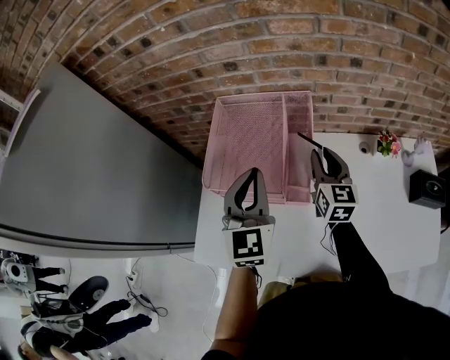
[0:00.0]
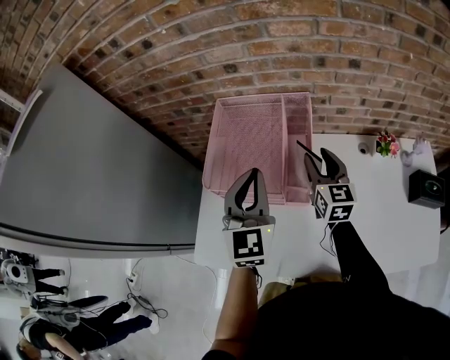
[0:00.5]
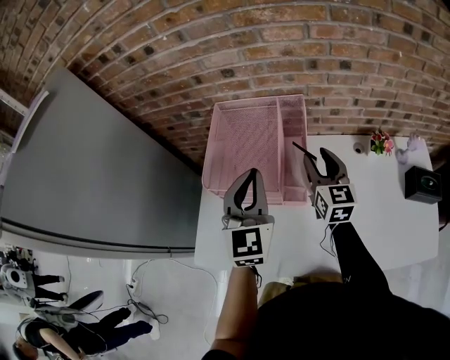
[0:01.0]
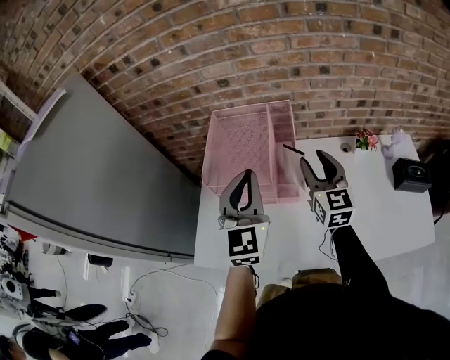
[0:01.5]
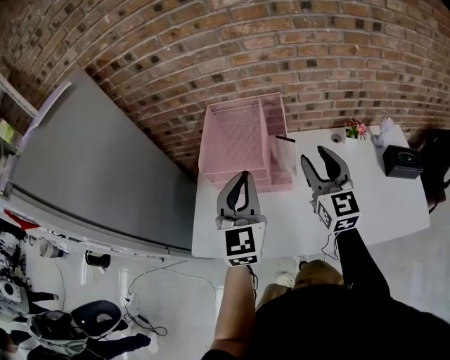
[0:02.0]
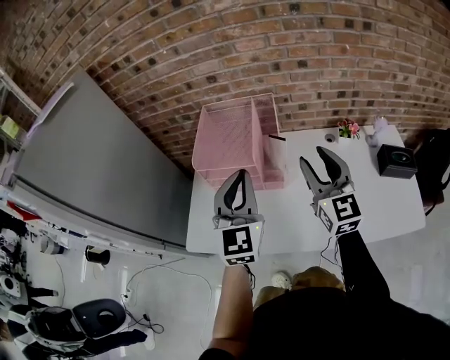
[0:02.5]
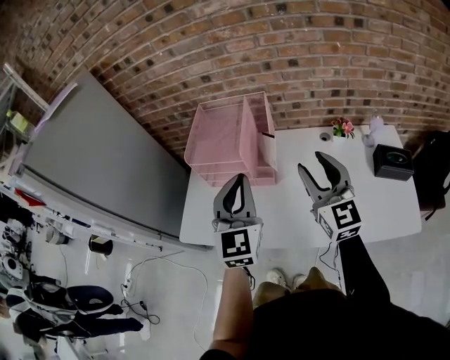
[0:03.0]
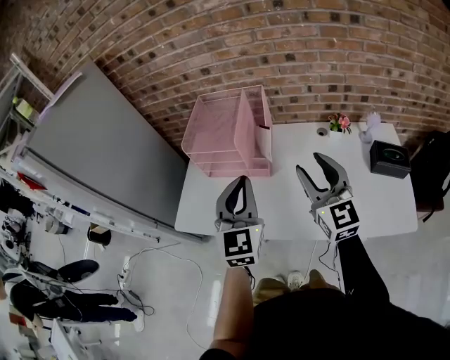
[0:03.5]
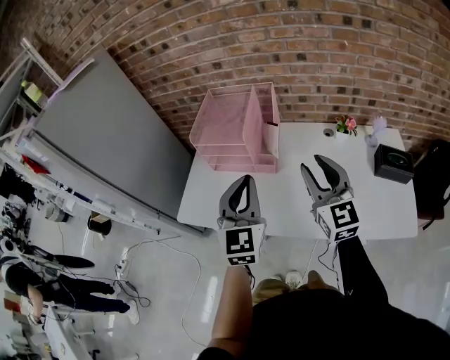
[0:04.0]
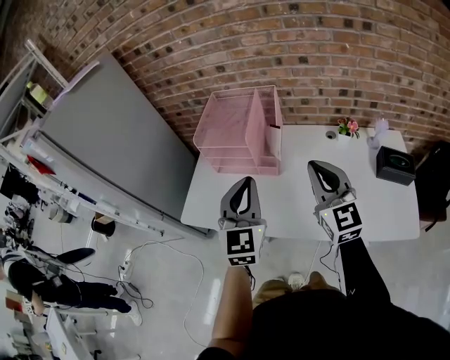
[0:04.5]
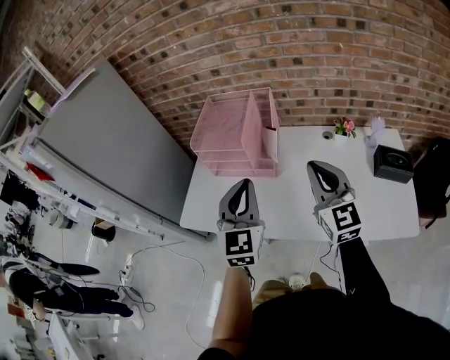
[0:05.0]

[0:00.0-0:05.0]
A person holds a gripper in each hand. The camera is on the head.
0:00.0 to 0:02.5: The right gripper is displaced backward and upward by approximately 25 cm, changes its angle by roughly 20 degrees, and opens up; the left gripper travels backward by roughly 15 cm.
0:02.5 to 0:05.0: The right gripper is displaced backward by approximately 10 cm, and closes. Meanwhile the left gripper moves backward and to the right, some 10 cm.

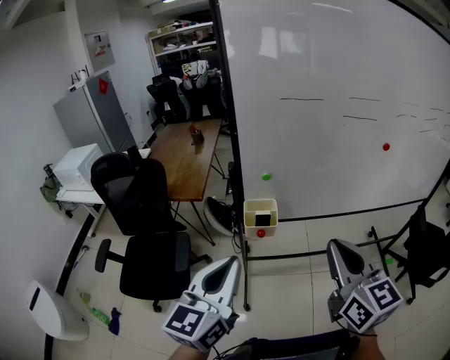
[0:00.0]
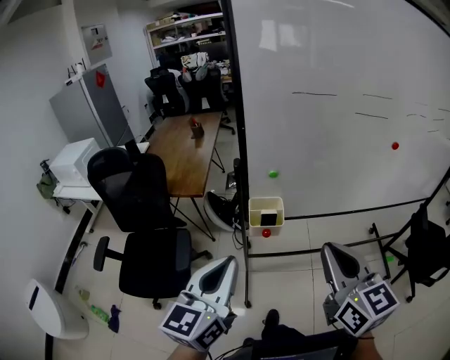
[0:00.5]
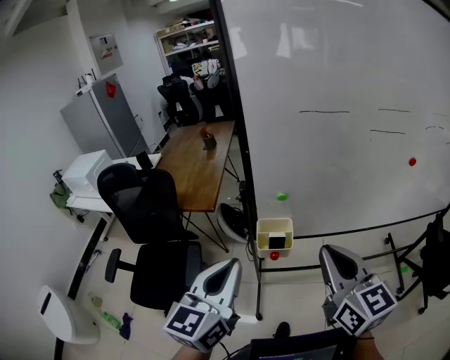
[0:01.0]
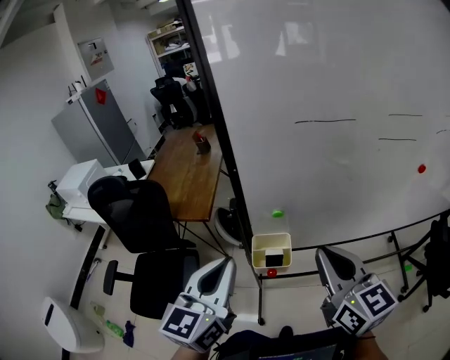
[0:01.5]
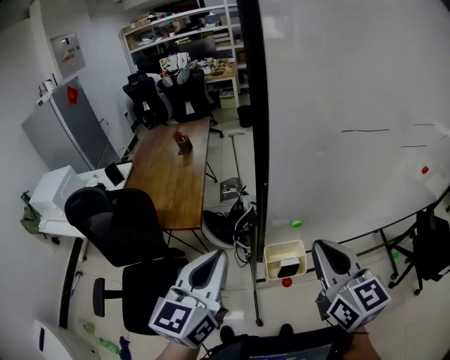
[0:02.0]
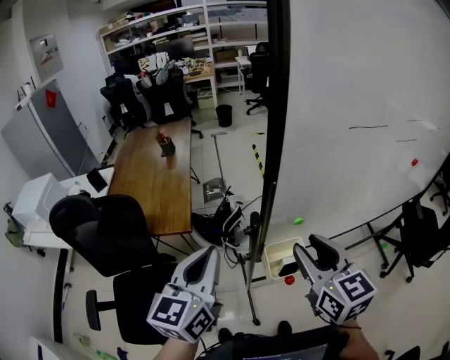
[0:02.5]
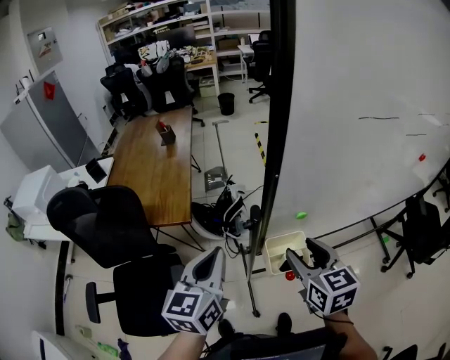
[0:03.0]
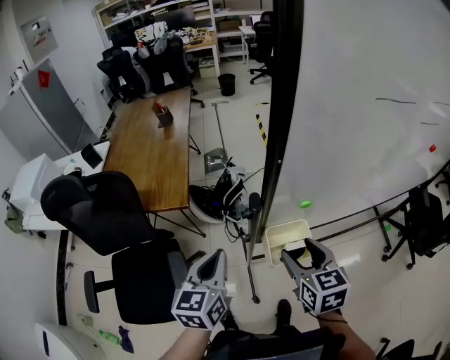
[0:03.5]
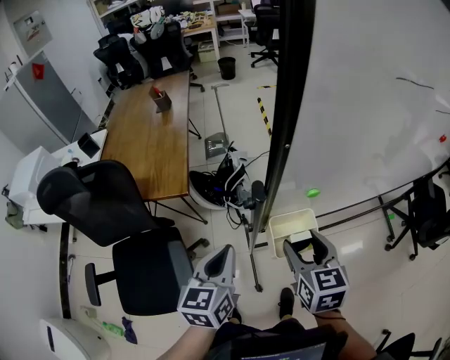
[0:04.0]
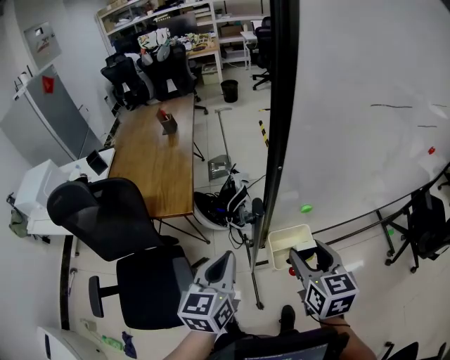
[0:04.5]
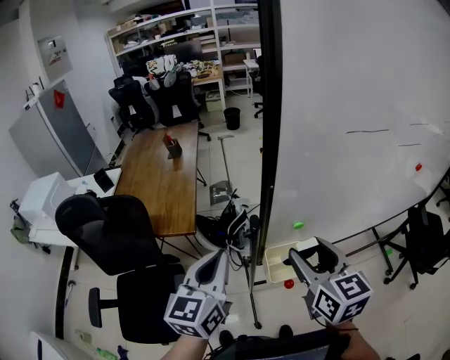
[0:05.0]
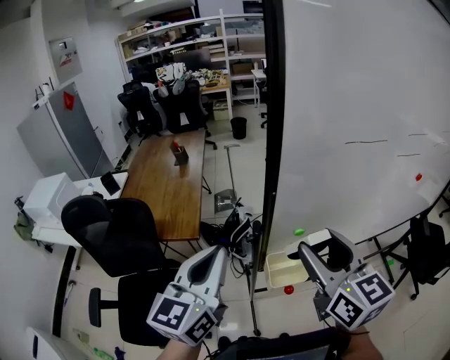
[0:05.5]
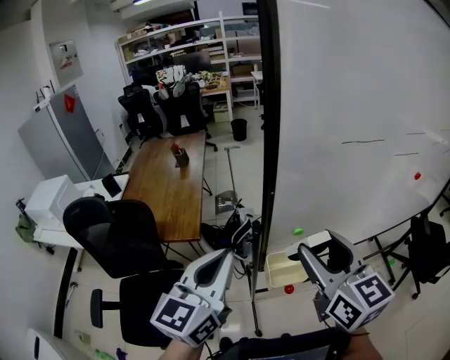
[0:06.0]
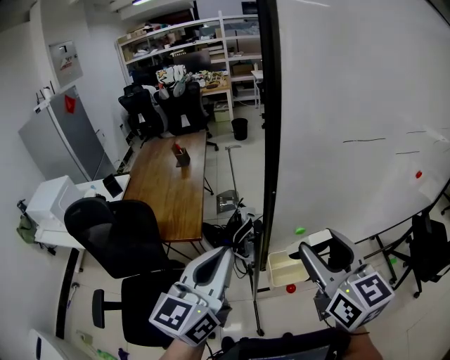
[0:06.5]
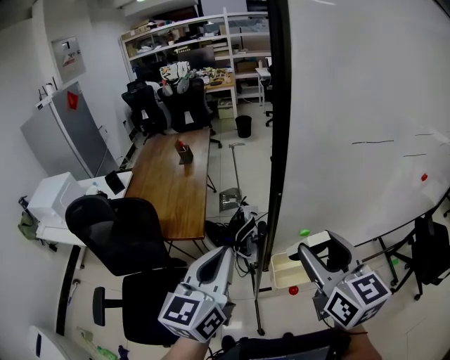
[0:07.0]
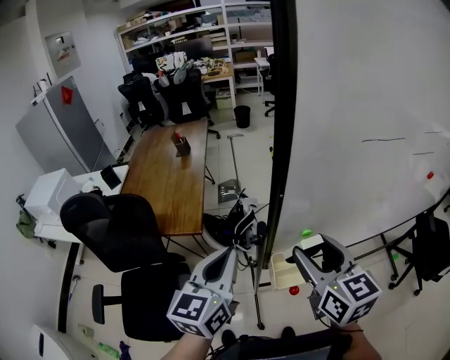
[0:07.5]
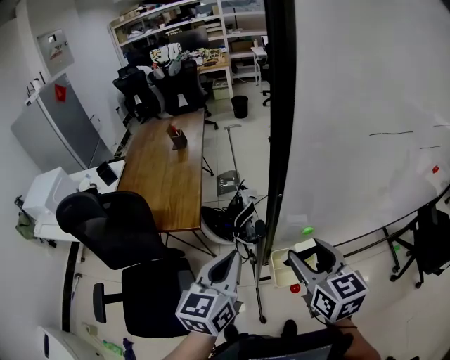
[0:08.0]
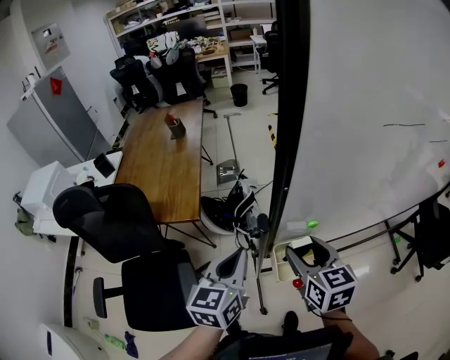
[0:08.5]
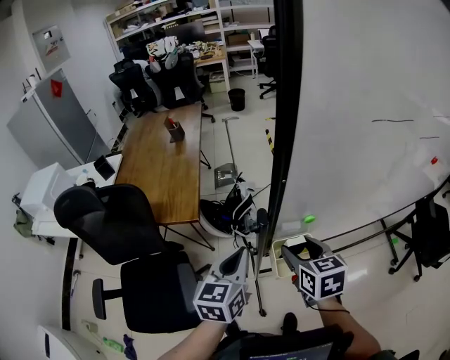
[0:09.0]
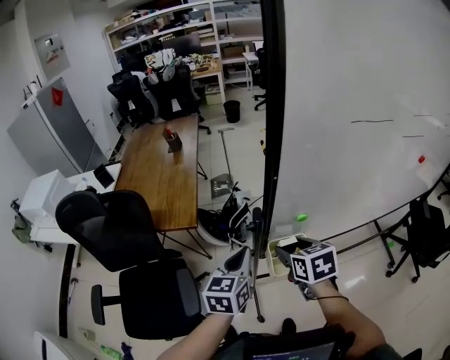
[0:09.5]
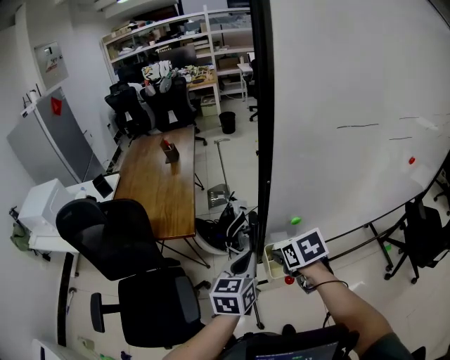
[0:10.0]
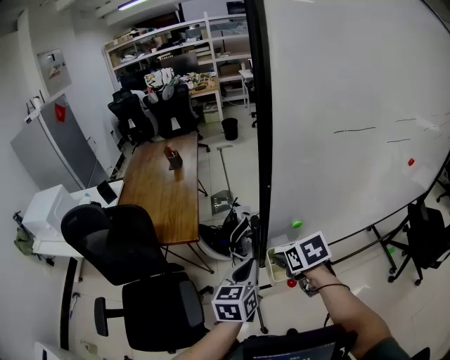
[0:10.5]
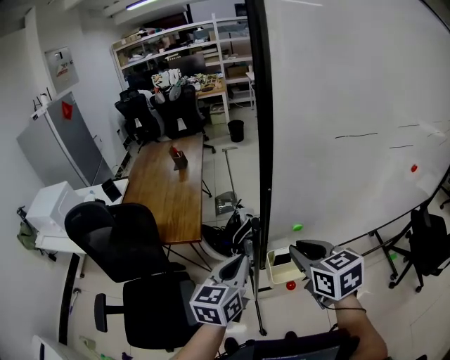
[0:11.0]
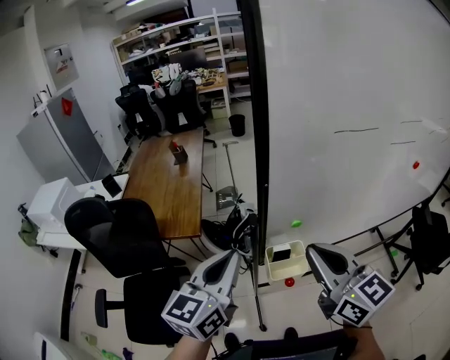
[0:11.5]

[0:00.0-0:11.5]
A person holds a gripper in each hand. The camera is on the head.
0:00.0 to 0:02.0: The two grippers go roughly 35 cm forward and to the left.
0:02.0 to 0:04.0: The grippers both shift downward by some 25 cm. The right gripper changes its angle by about 30 degrees, and opens, while the left gripper turns by roughly 20 degrees.
0:04.0 to 0:06.0: The two grippers go approximately 25 cm upward. The left gripper swivels roughly 30 degrees, while the right gripper swivels approximately 30 degrees.
0:06.0 to 0:07.5: The two grippers go some 10 cm downward and forward.
0:07.5 to 0:09.5: Both grippers move downward, about 15 cm. The right gripper points its fingers approximately 30 degrees further downward.
0:09.5 to 0:11.5: Both grippers move upward and backward, roughly 20 cm. The right gripper points its fingers some 40 degrees further upward, and closes up.

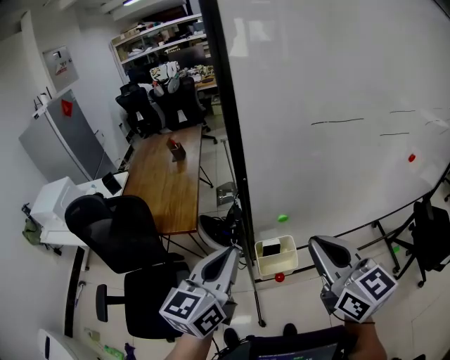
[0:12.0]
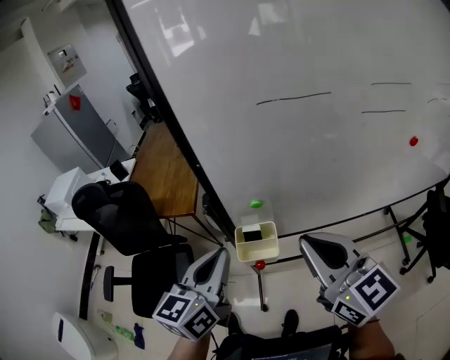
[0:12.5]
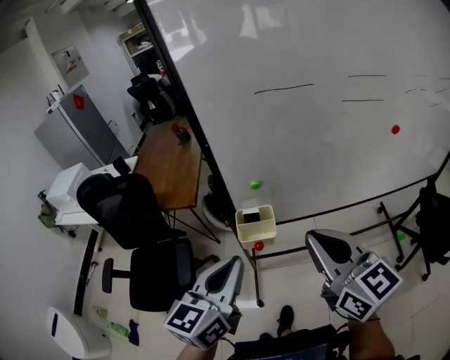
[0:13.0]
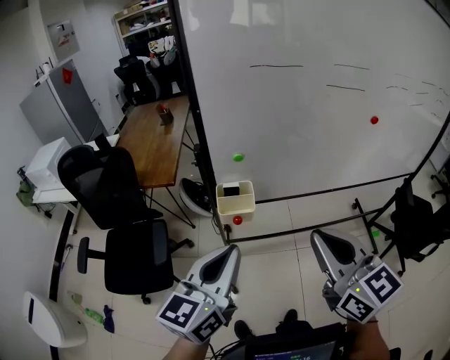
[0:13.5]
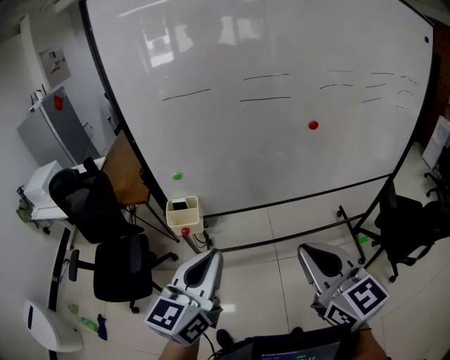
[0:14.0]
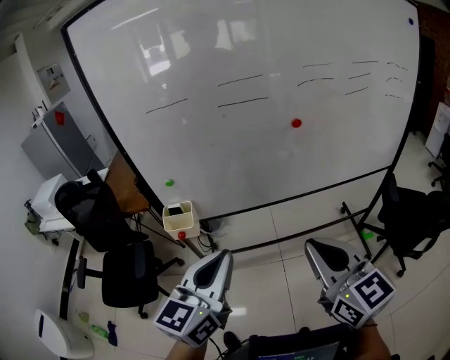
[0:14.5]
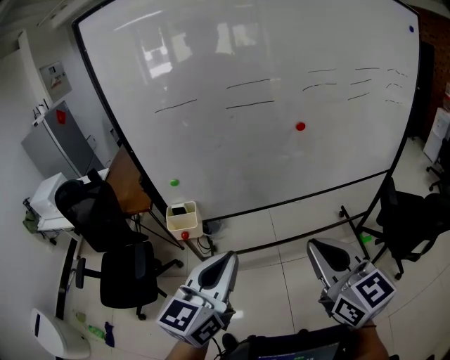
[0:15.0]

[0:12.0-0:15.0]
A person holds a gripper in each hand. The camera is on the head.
0:12.0 to 0:13.5: Both grippers travel together backward and to the right, about 30 cm.
0:13.5 to 0:15.0: Both grippers move to the right, some 25 cm.

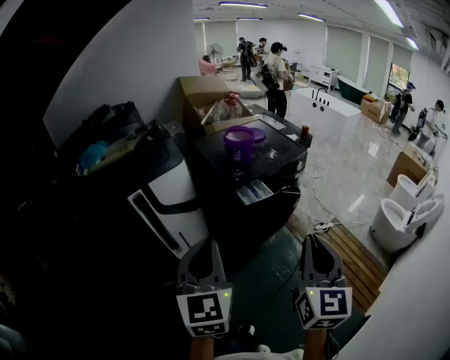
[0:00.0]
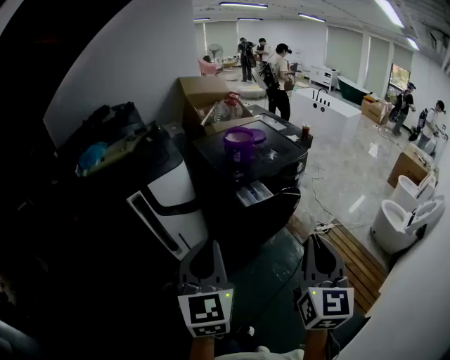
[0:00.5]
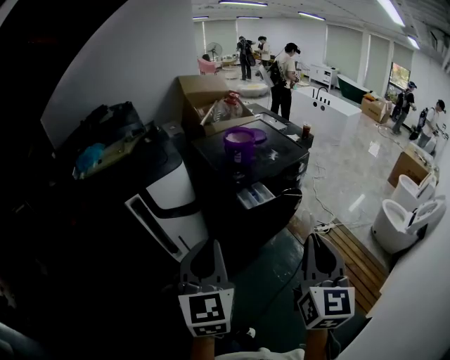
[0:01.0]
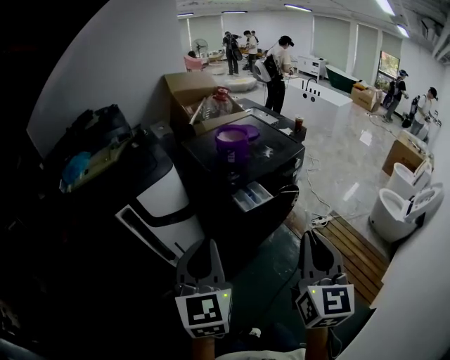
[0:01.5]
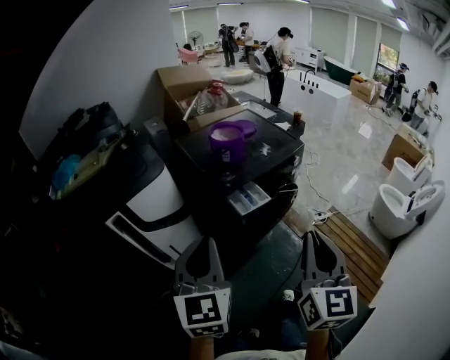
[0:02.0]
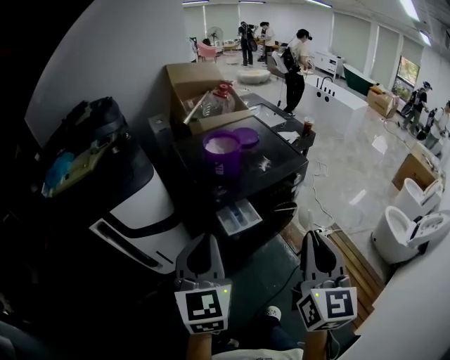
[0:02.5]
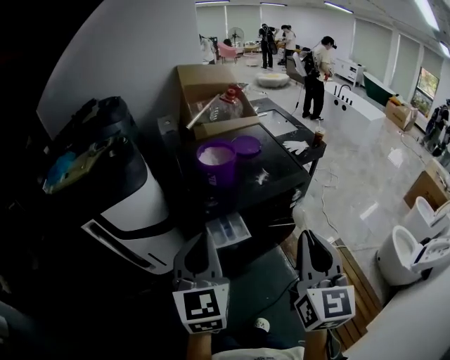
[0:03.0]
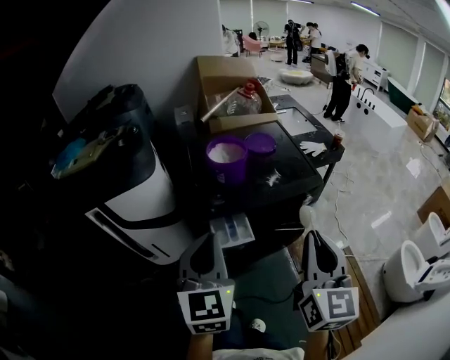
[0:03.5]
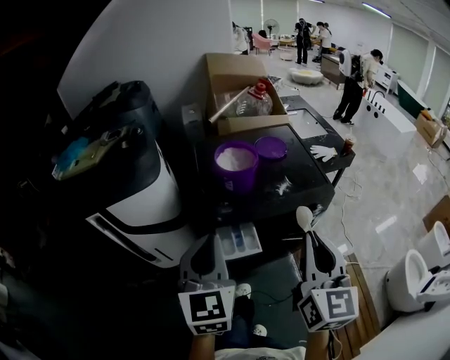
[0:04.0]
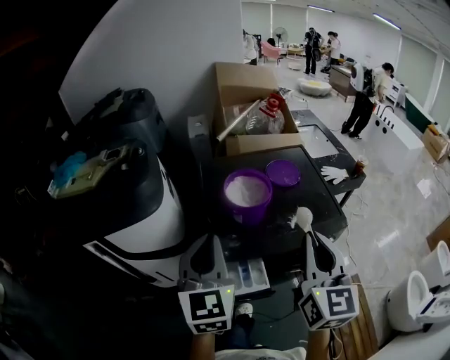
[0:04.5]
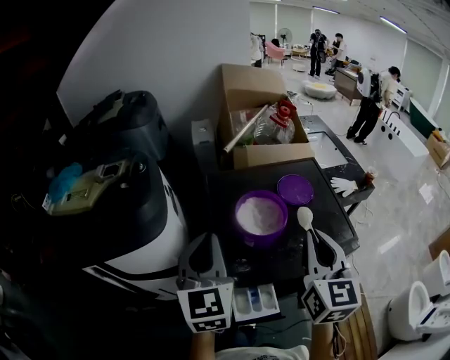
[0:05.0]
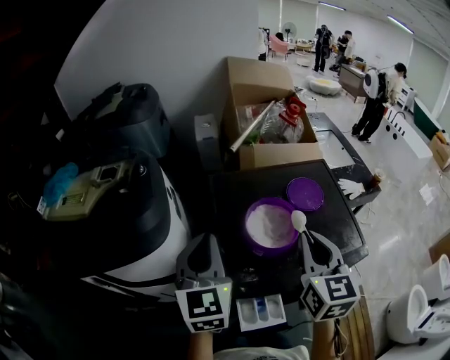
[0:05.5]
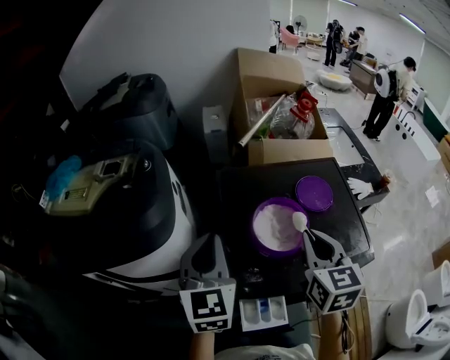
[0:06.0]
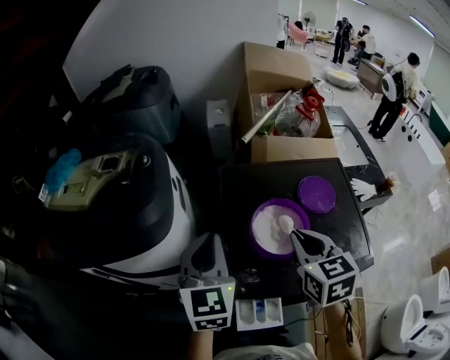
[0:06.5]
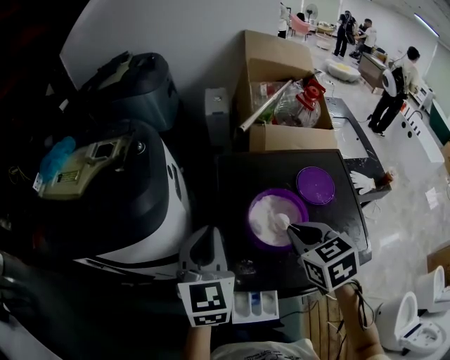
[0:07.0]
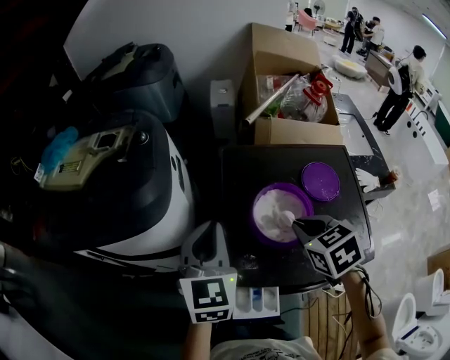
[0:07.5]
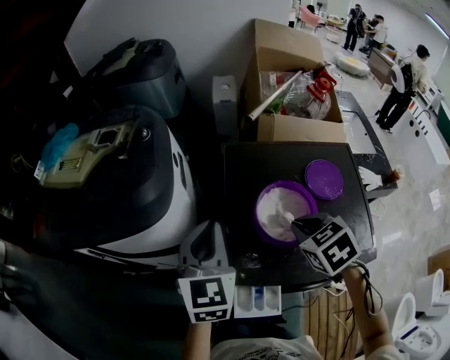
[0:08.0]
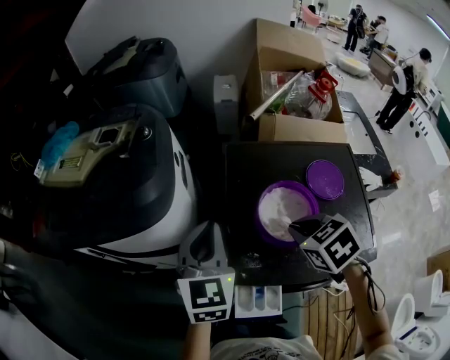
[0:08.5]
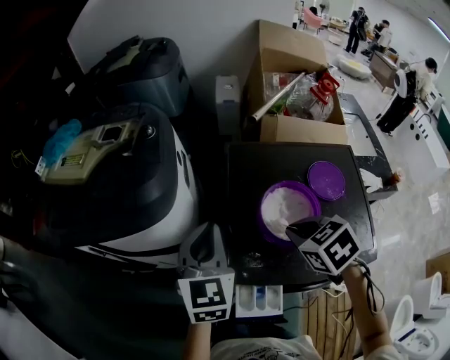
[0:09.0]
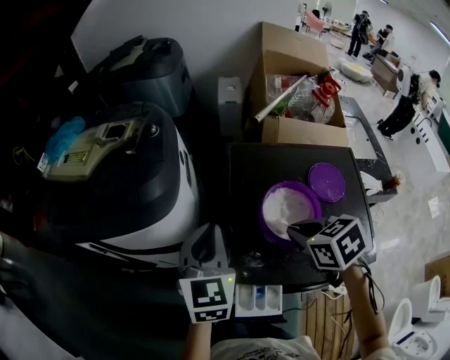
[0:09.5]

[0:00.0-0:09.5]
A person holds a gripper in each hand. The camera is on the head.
0:00.0 to 0:02.0: Both grippers travel together forward, roughly 10 cm.
0:02.0 to 0:04.0: The grippers both shift forward and to the right by some 30 cm. The left gripper changes its angle by approximately 20 degrees. The right gripper changes its angle by some 20 degrees.
0:04.0 to 0:05.5: Both grippers move forward, some 30 cm.
0:05.5 to 0:07.5: The right gripper travels downward and forward by approximately 10 cm, and tips its fingers downward by approximately 40 degrees.
0:07.5 to 0:09.5: The grippers make only small movements.
